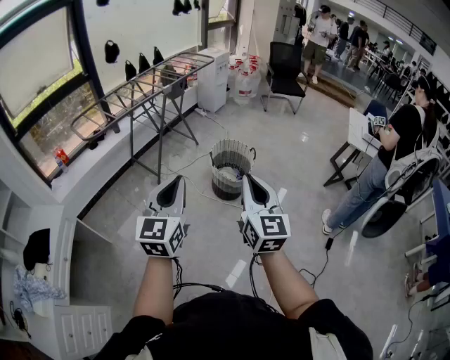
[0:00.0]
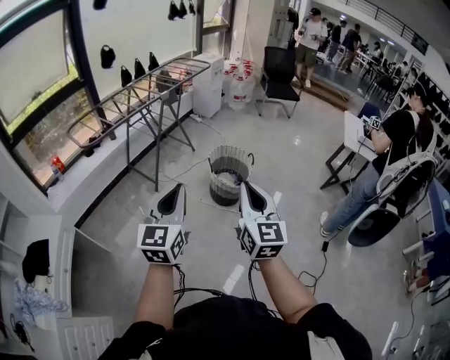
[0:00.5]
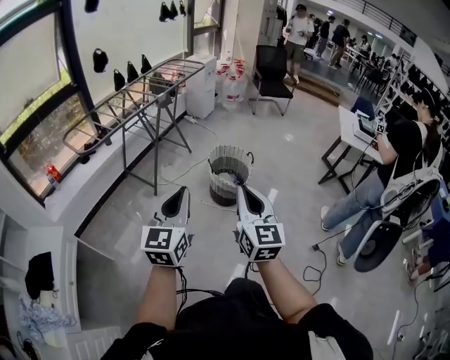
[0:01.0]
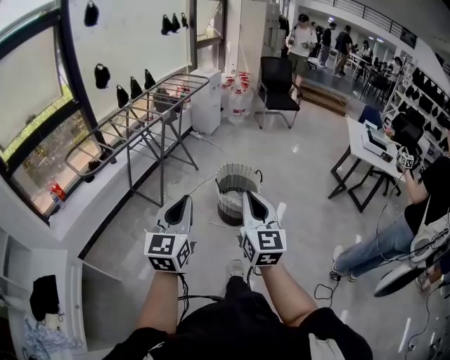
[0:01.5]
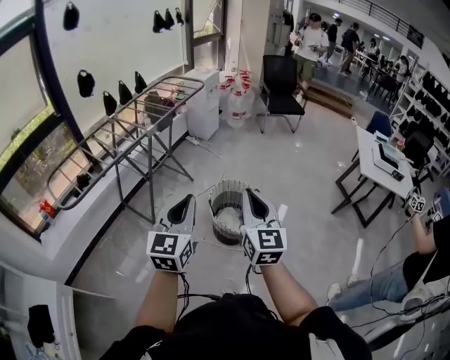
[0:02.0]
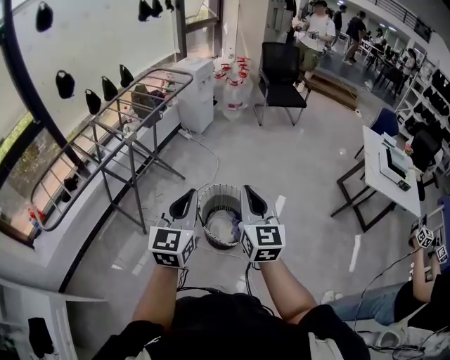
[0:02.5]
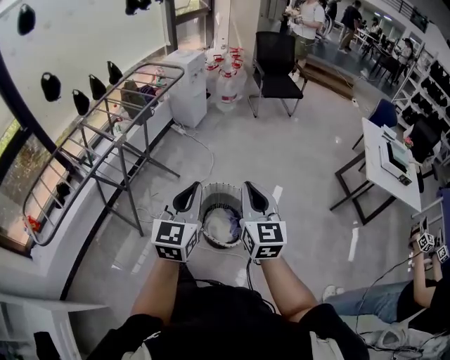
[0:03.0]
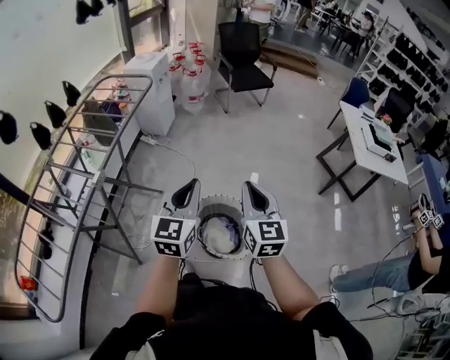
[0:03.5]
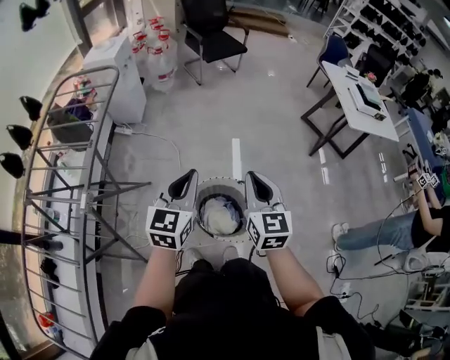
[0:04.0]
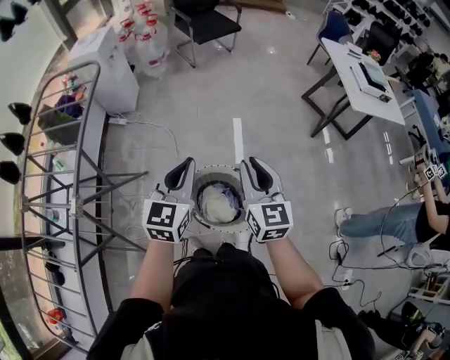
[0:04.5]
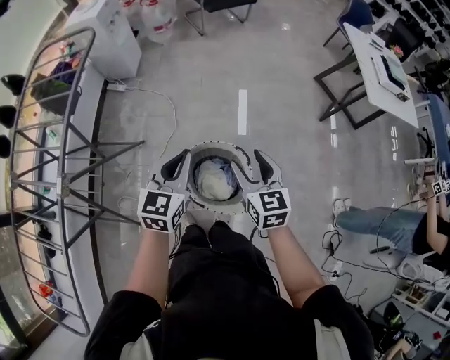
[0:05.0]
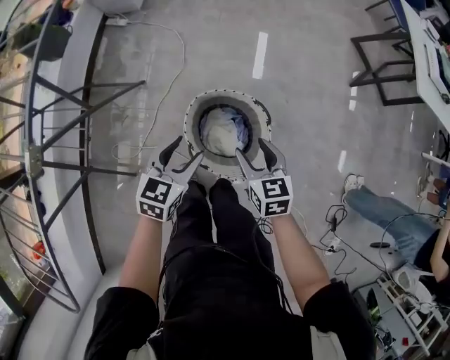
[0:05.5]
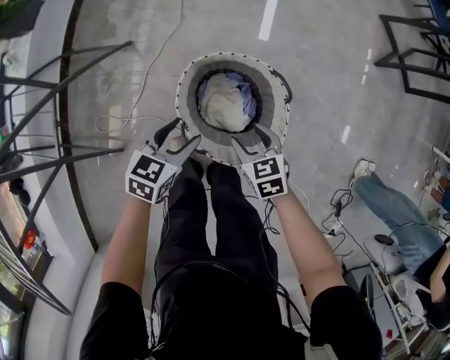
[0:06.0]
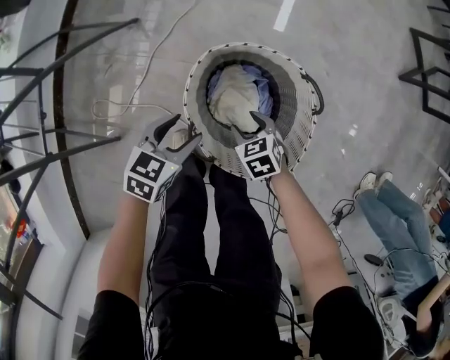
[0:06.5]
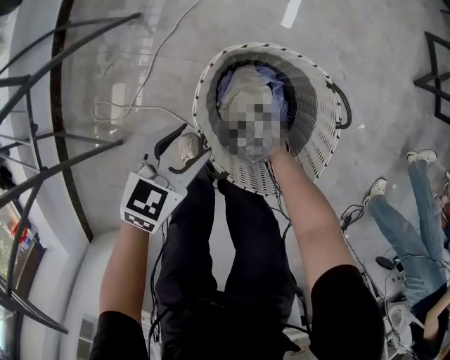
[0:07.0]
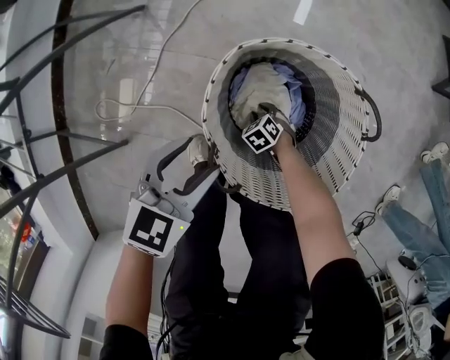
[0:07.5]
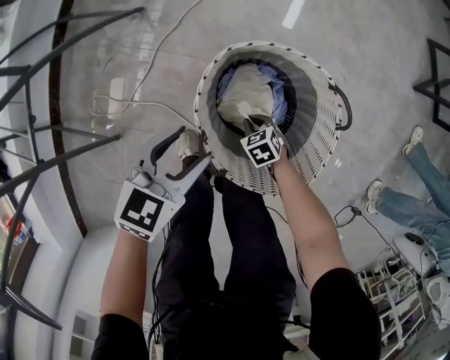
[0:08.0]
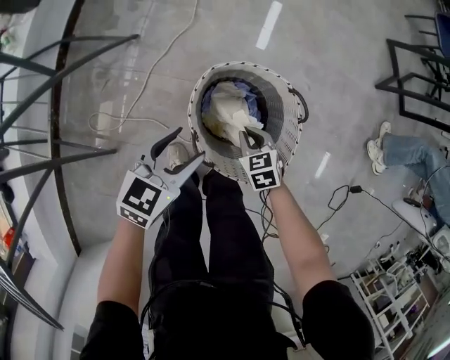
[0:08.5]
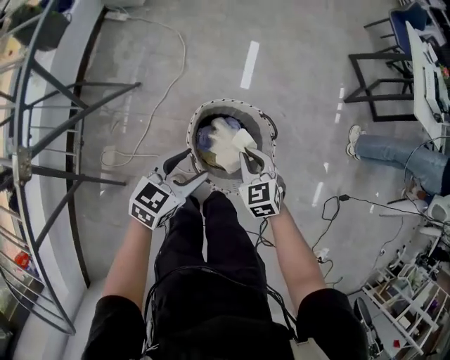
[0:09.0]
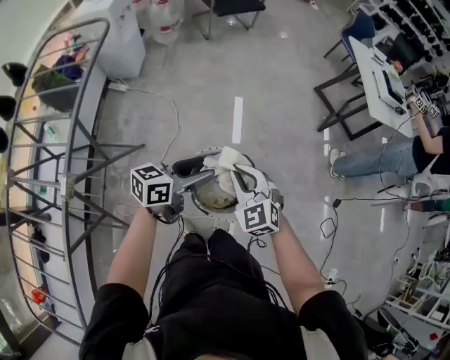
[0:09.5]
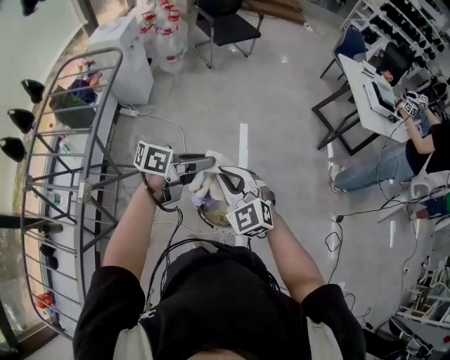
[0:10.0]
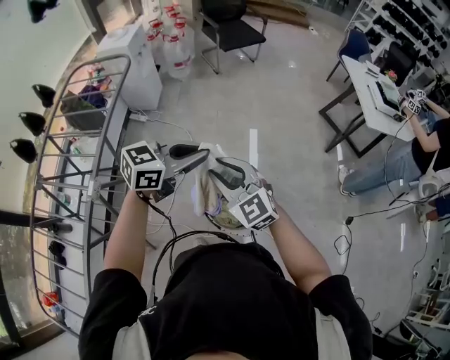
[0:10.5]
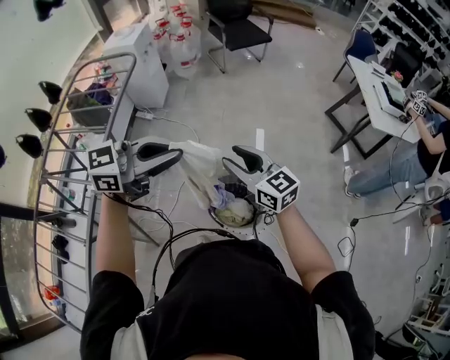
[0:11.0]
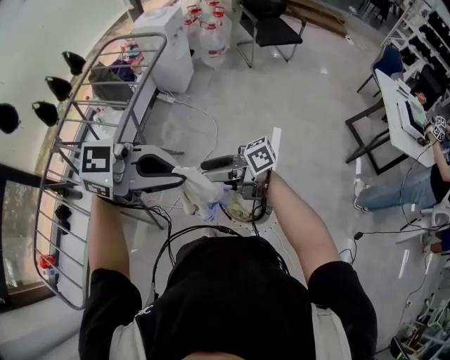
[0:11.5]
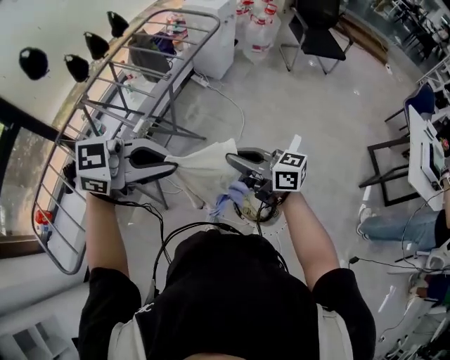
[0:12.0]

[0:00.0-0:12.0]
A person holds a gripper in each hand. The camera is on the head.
0:00.0 to 0:02.0: The two grippers go roughly 35 cm forward.
0:02.0 to 0:04.0: The pair of grippers is taken approximately 50 cm. The left gripper swivels approximately 30 degrees. The right gripper turns by roughly 30 degrees.
0:04.0 to 0:06.0: Both grippers travel together downward, approximately 50 cm. The left gripper tilts its fingers approximately 30 degrees downward, and opens its fingers. Meanwhile the right gripper angles its fingers downward, by approximately 40 degrees, and opens its fingers.
0:06.0 to 0:08.0: The left gripper is displaced downward by about 10 cm. Meanwhile the right gripper is displaced downward by some 30 cm, changes its angle by approximately 20 degrees, and closes its fingers.
0:08.0 to 0:10.0: The right gripper moves upward, roughly 80 cm, and tilts its fingers roughly 50 degrees upward. The left gripper shifts about 50 cm upward, points its fingers roughly 30 degrees further upward, and closes.
0:10.0 to 0:12.0: The left gripper ends up roughly 30 cm from where it was, and turns by approximately 40 degrees; the right gripper ends up roughly 15 cm from where it was, swivels some 80 degrees, and opens, then closes again.

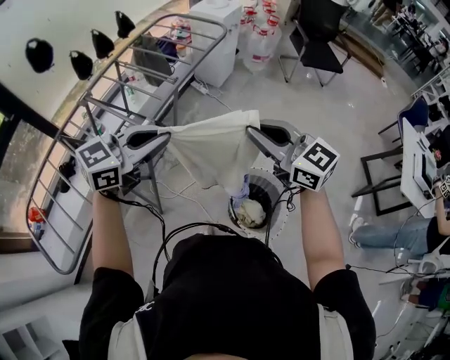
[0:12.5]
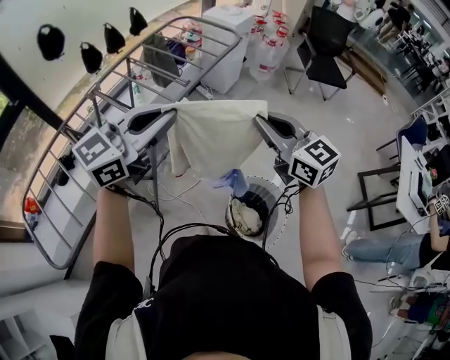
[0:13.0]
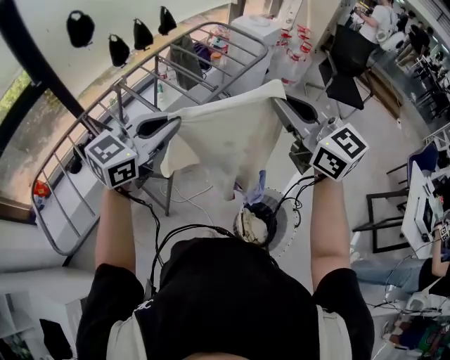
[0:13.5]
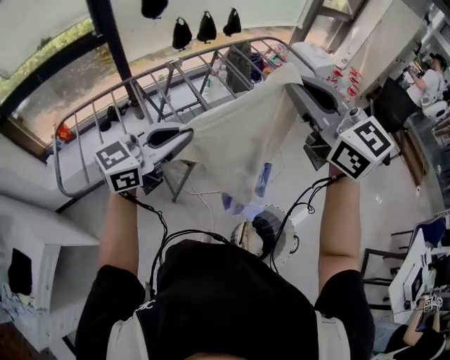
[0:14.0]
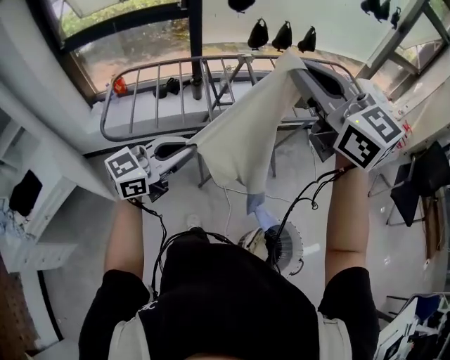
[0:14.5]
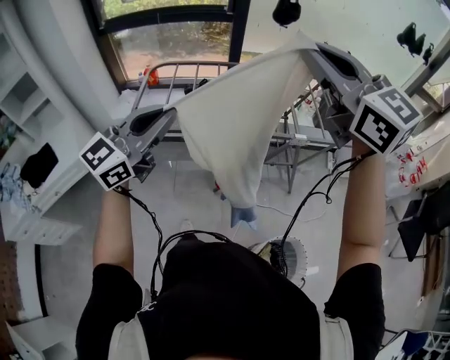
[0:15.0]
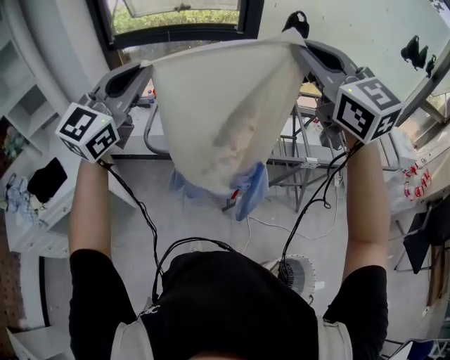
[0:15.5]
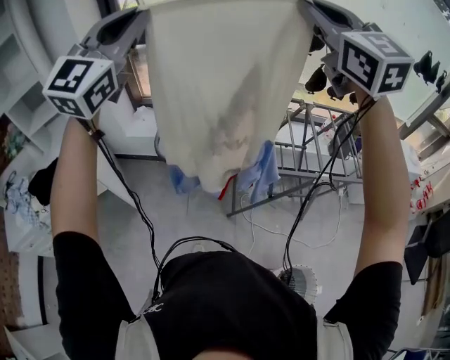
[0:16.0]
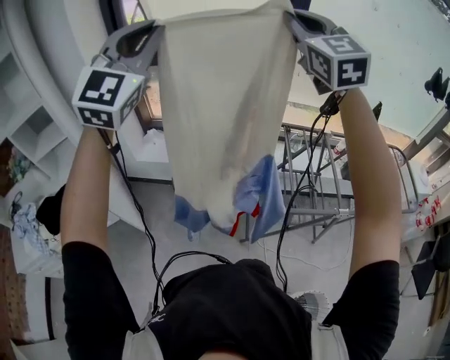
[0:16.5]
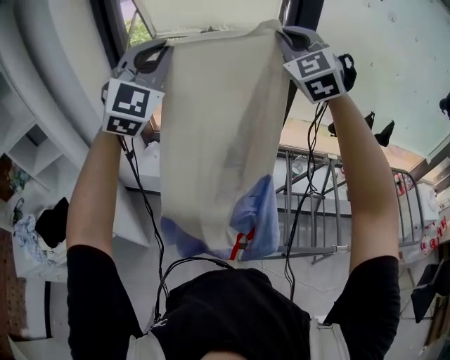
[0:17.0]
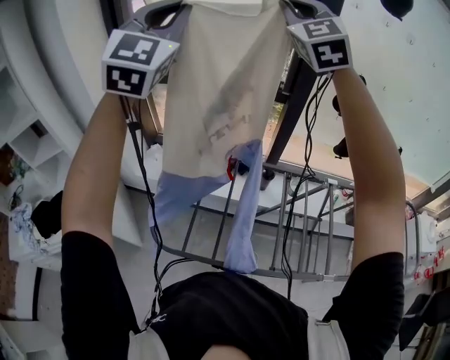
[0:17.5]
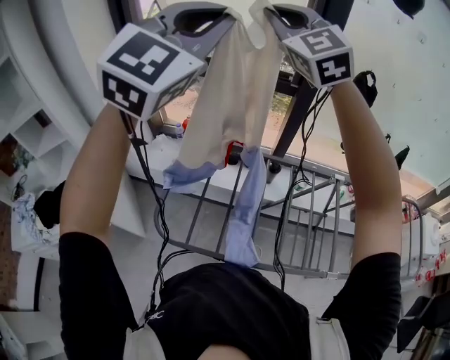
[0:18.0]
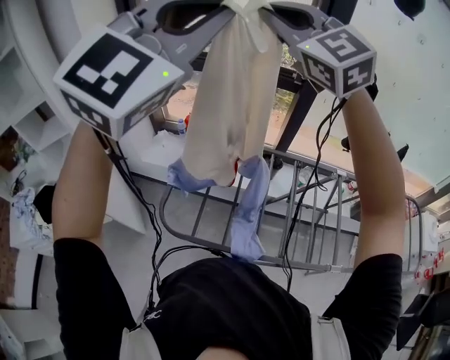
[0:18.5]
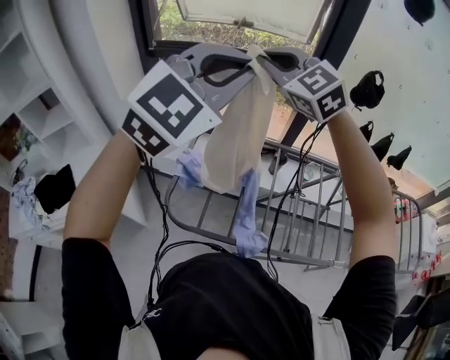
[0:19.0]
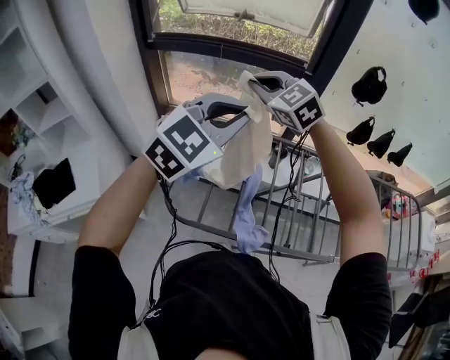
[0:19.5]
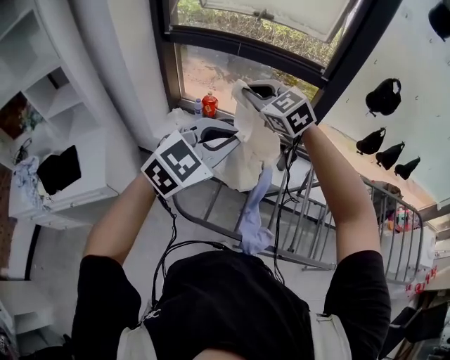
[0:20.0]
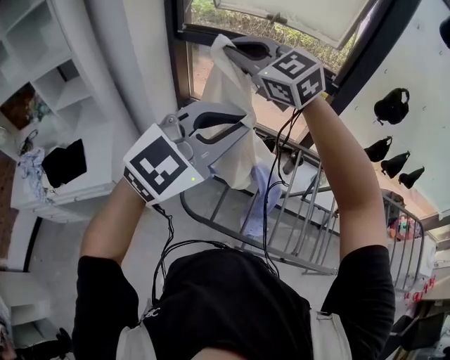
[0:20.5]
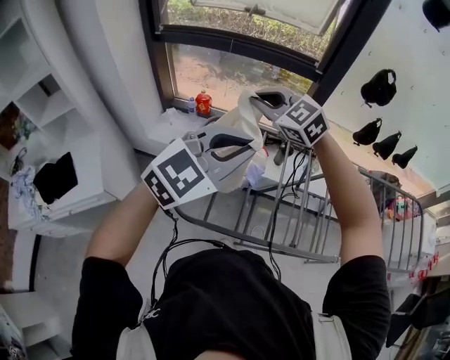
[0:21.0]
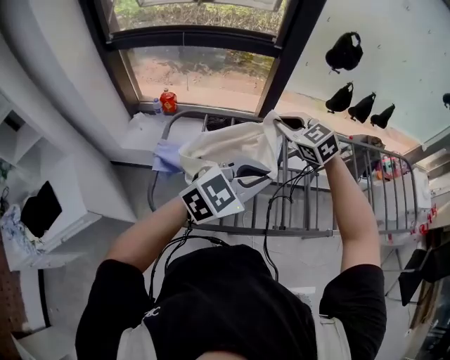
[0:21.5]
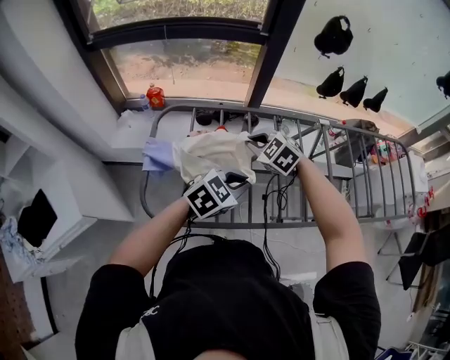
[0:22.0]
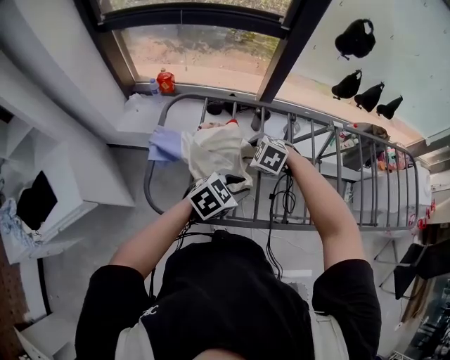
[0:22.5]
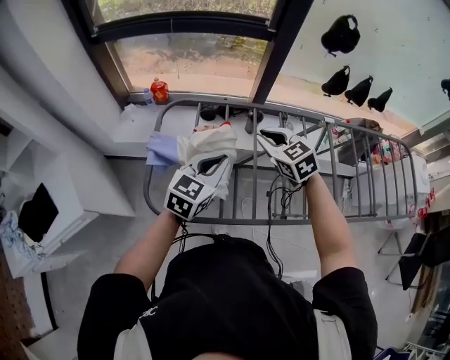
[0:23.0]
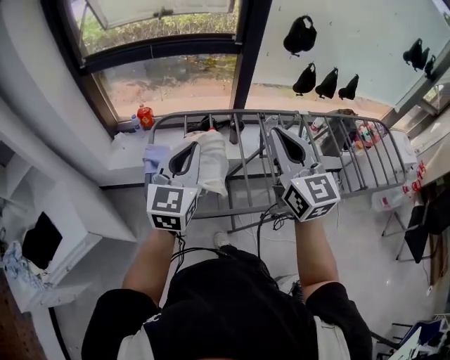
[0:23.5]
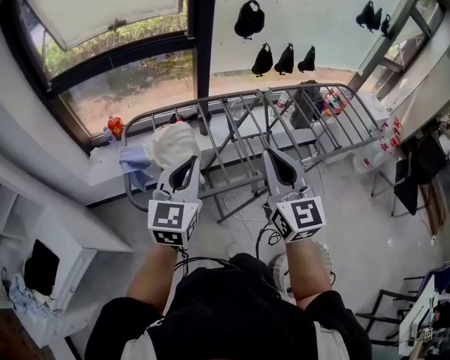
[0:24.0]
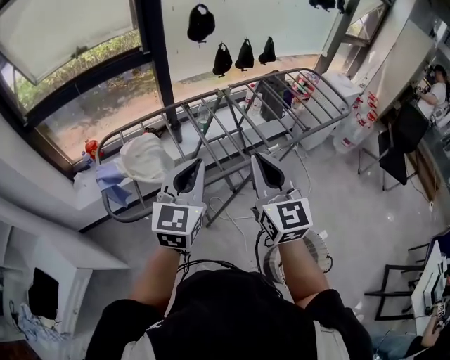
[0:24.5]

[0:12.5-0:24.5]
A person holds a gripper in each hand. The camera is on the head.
0:12.5 to 0:14.5: The right gripper moves roughly 35 cm, and turns by roughly 40 degrees. Meanwhile the left gripper moves approximately 10 cm upward and comes back, and turns by about 50 degrees.
0:14.5 to 0:16.5: The pair of grippers is taken to the left and forward, roughly 50 cm. The right gripper turns by about 30 degrees; the left gripper heads upward, covering about 35 cm, and swivels roughly 80 degrees.
0:16.5 to 0:18.5: The left gripper travels to the right by approximately 15 cm, and reaches approximately 20 cm forward, then returns; the right gripper travels forward by roughly 10 cm, and swivels approximately 30 degrees.
0:18.5 to 0:20.5: The left gripper is displaced downward by some 20 cm, and changes its angle by some 20 degrees; the right gripper moves to the left and downward, some 25 cm, and rotates some 30 degrees.
0:20.5 to 0:22.5: The two grippers go approximately 40 cm downward. The right gripper points its fingers roughly 60 degrees further downward, and opens; the left gripper tips its fingers downward by approximately 30 degrees.
0:22.5 to 0:24.5: The left gripper travels upward by about 20 cm, and angles its fingers upward, by roughly 30 degrees. The right gripper shifts by approximately 50 cm, tips its fingers upward by about 70 degrees, and closes.

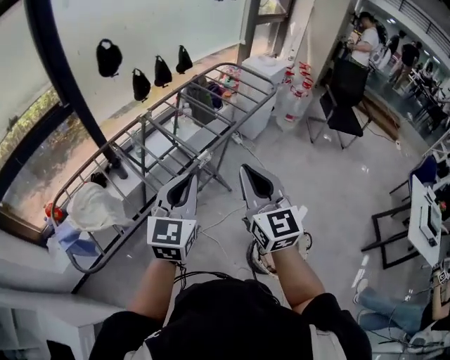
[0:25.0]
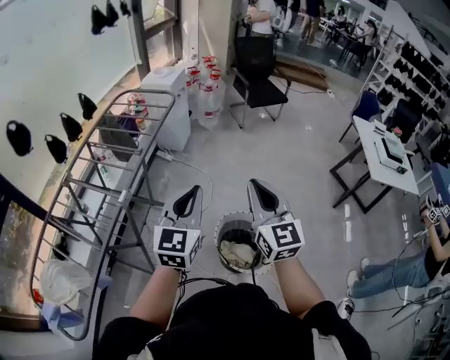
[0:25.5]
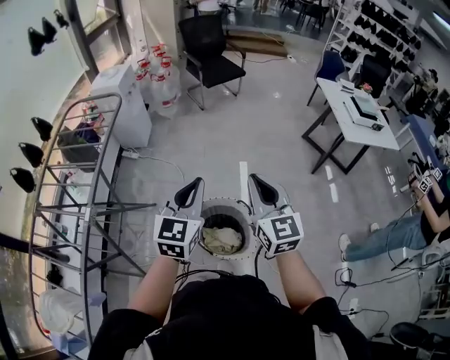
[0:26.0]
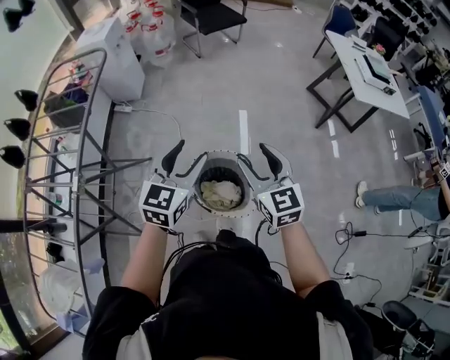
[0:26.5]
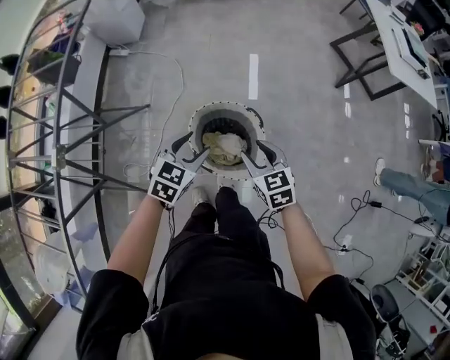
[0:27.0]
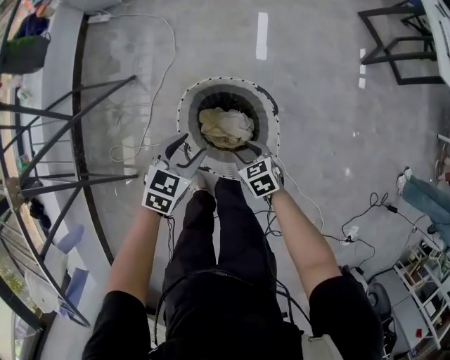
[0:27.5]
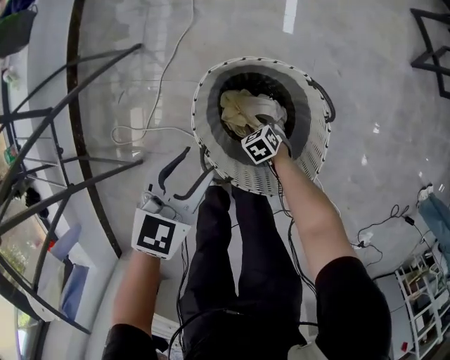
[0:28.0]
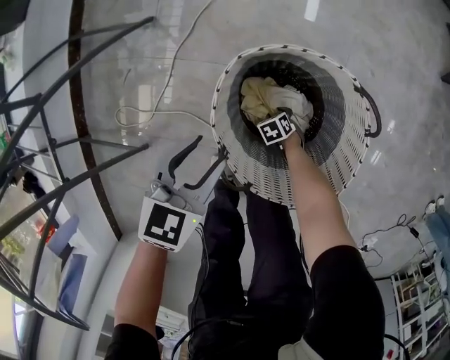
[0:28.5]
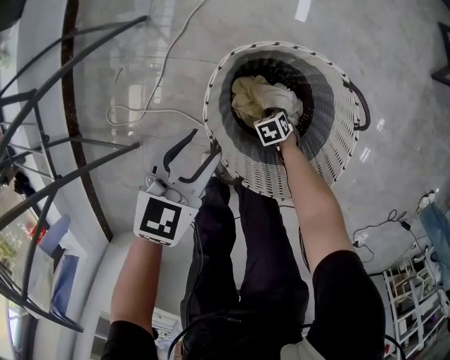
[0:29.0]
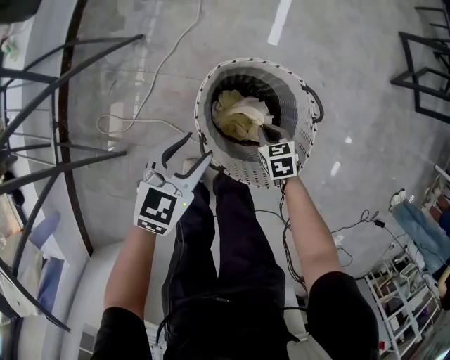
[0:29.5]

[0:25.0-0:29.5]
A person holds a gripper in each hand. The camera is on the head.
0:25.0 to 0:27.0: The two grippers travel together, about 40 cm. The left gripper angles its fingers downward, by about 40 degrees, and opens. The right gripper tips its fingers downward by approximately 40 degrees, and opens.
0:27.0 to 0:29.5: The right gripper moves downward, approximately 40 cm, swivels about 30 degrees, and closes up. Meanwhile the left gripper travels downward by roughly 25 cm.
